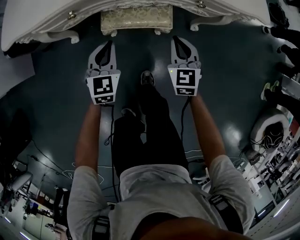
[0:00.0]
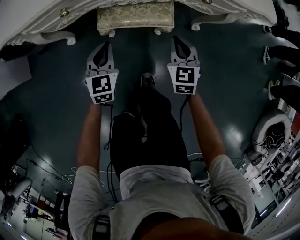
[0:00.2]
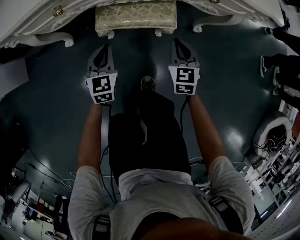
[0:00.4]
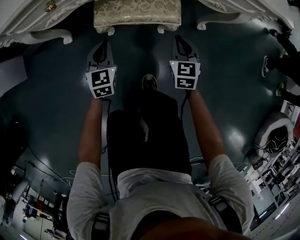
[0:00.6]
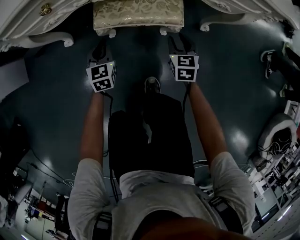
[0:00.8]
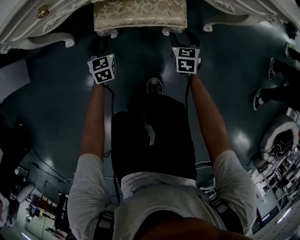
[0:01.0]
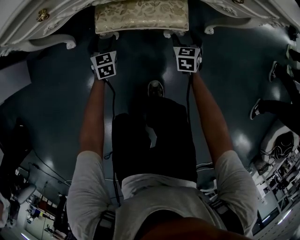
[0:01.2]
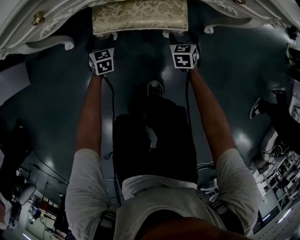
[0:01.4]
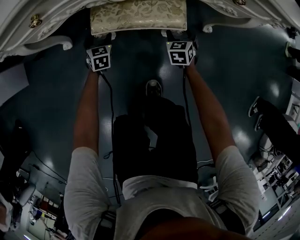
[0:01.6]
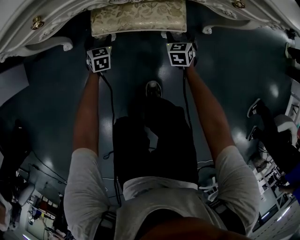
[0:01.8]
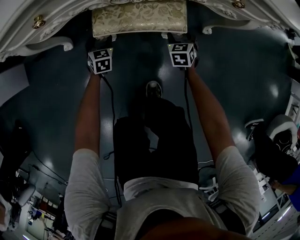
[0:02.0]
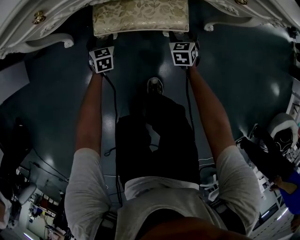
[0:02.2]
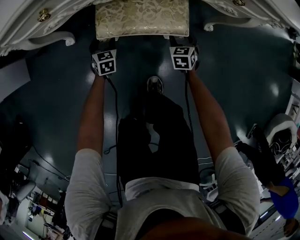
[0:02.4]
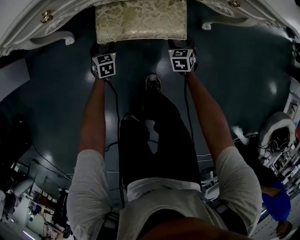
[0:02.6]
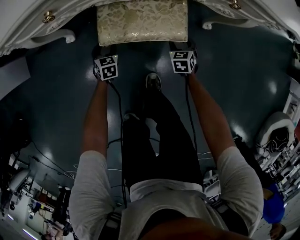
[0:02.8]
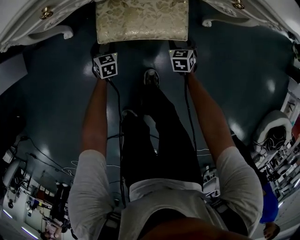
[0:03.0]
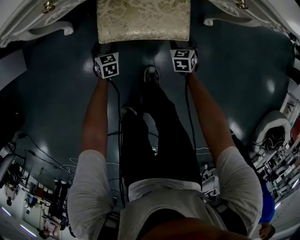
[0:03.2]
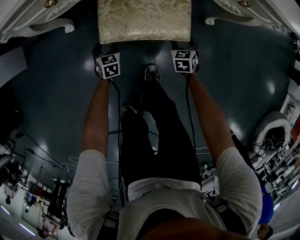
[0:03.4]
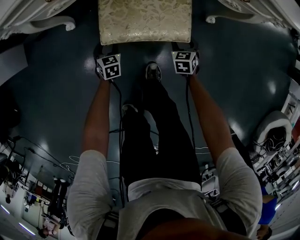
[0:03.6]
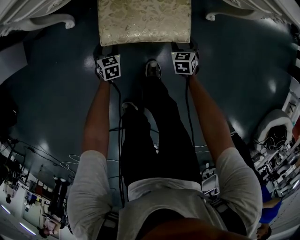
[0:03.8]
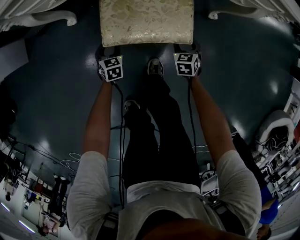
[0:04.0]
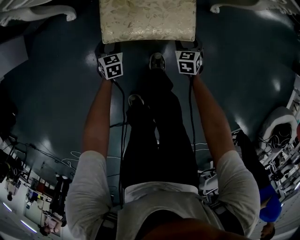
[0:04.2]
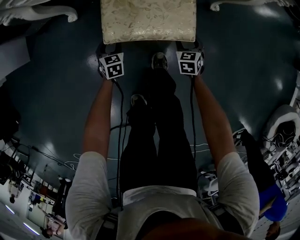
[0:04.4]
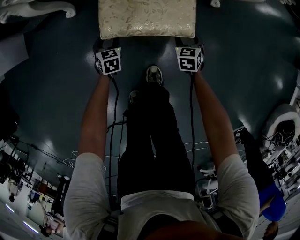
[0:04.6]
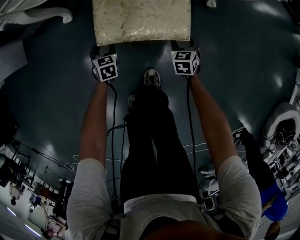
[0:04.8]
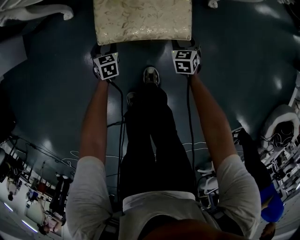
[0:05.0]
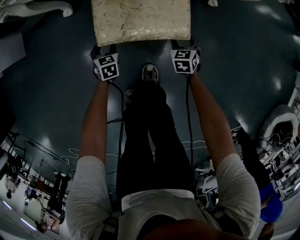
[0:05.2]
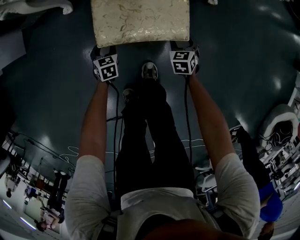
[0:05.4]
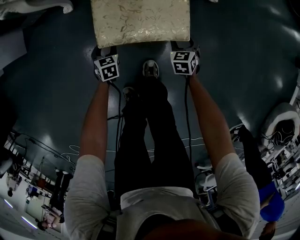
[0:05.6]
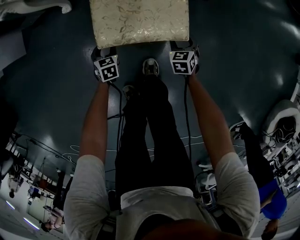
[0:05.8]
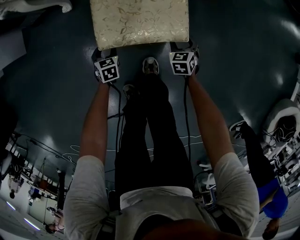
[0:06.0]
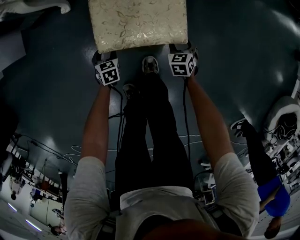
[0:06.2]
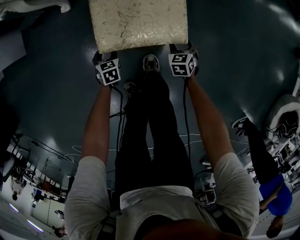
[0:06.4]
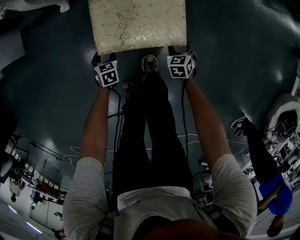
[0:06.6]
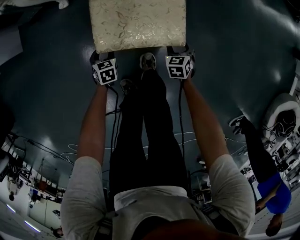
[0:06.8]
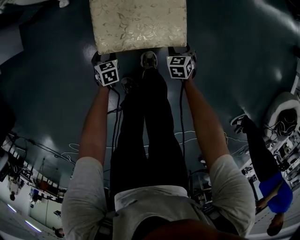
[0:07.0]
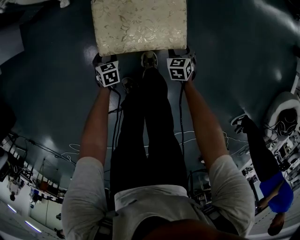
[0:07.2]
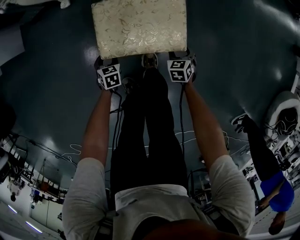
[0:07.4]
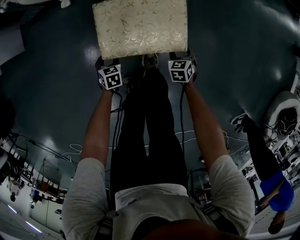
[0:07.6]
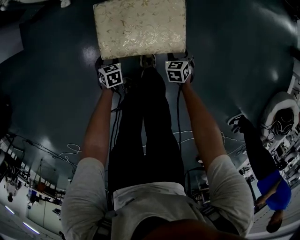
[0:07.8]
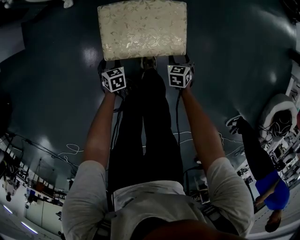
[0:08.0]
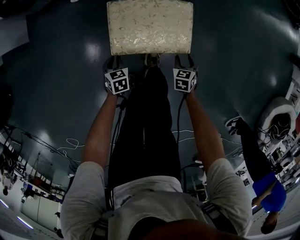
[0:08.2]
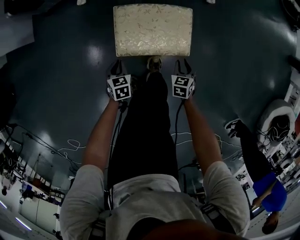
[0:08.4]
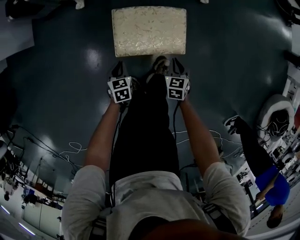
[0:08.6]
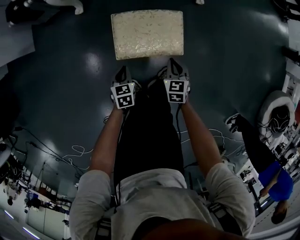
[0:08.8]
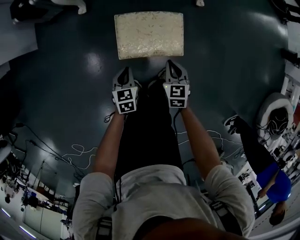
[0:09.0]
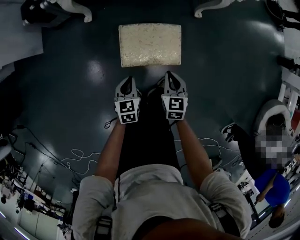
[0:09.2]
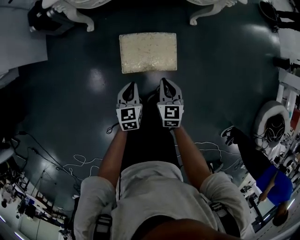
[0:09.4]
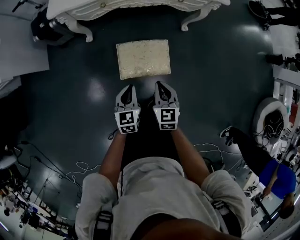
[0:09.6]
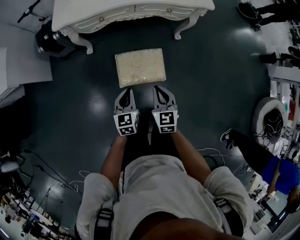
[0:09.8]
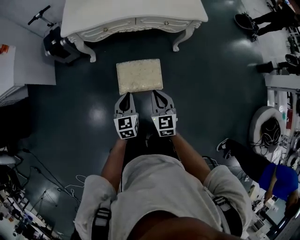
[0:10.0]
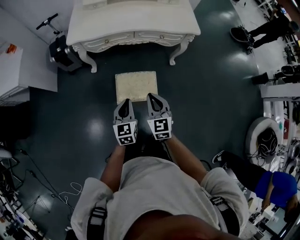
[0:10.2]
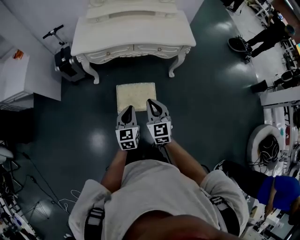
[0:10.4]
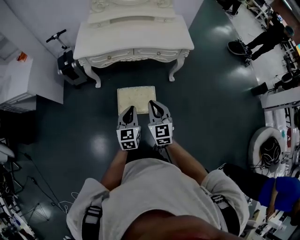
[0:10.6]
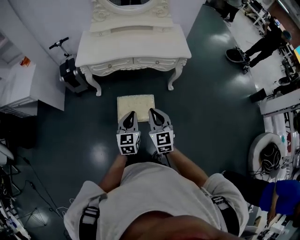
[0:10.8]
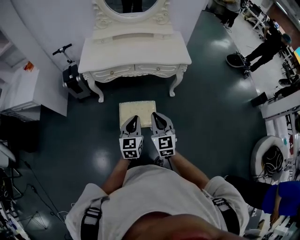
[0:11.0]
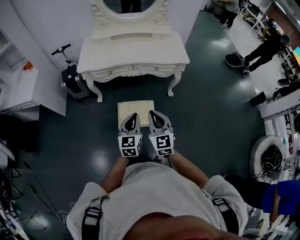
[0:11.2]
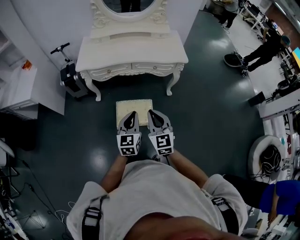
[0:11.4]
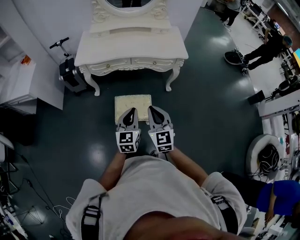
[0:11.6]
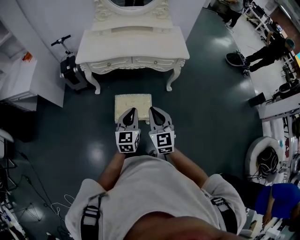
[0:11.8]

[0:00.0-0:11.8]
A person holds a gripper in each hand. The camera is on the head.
0:00.0 to 0:01.4: The two grippers go about 30 cm downward. The right gripper opens up, while the left gripper opens its fingers.
0:01.4 to 0:03.0: The grippers both shift backward by roughly 5 cm.
0:03.0 to 0:04.4: The two grippers go roughly 15 cm backward.
0:04.4 to 0:06.0: Both grippers move backward, roughly 5 cm.
0:06.0 to 0:07.4: The grippers both shift backward by roughly 10 cm.
0:07.4 to 0:08.8: The right gripper goes about 20 cm upward and to the left, and closes its fingers; the left gripper heads upward, covering roughly 20 cm, and closes up.
0:08.8 to 0:10.4: The two grippers go approximately 50 cm upward. The left gripper tips its fingers upward by approximately 30 degrees, while the right gripper rotates roughly 30 degrees.
0:10.4 to 0:11.8: The left gripper travels upward and to the right by roughly 10 cm. Meanwhile the right gripper travels upward by approximately 10 cm.

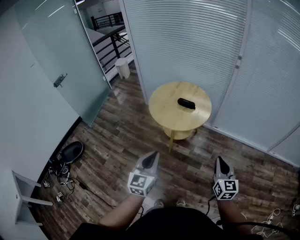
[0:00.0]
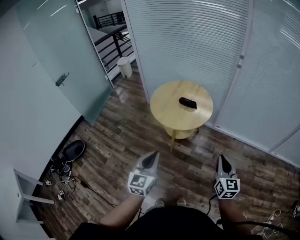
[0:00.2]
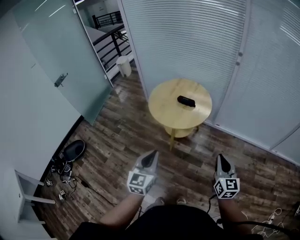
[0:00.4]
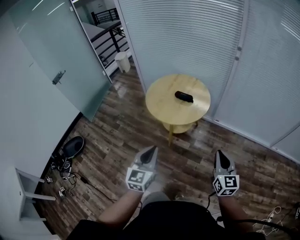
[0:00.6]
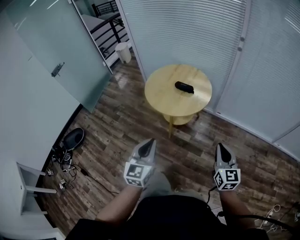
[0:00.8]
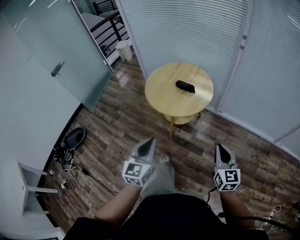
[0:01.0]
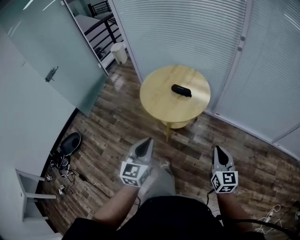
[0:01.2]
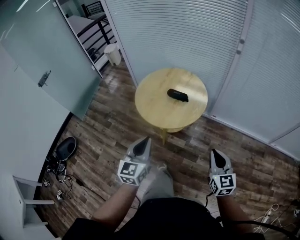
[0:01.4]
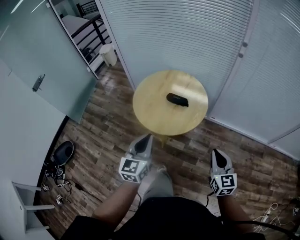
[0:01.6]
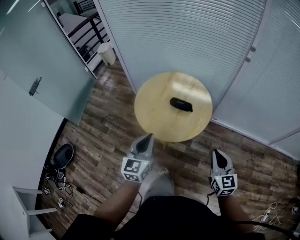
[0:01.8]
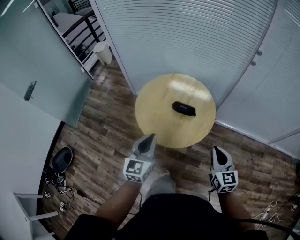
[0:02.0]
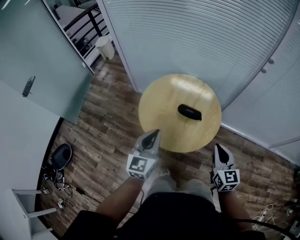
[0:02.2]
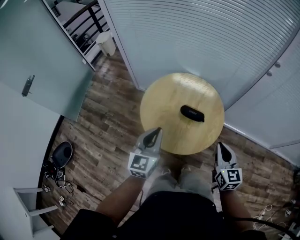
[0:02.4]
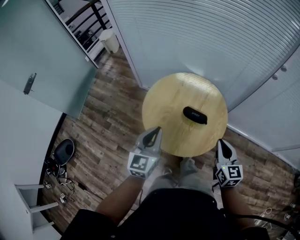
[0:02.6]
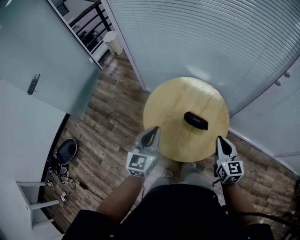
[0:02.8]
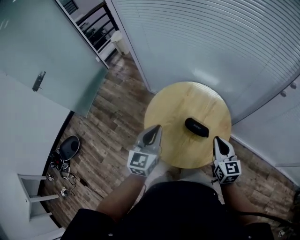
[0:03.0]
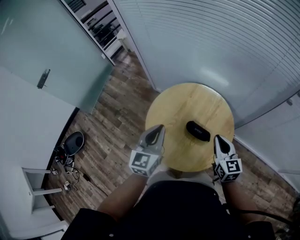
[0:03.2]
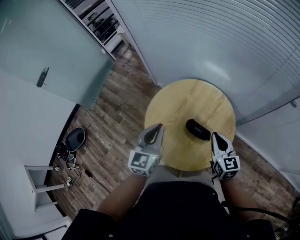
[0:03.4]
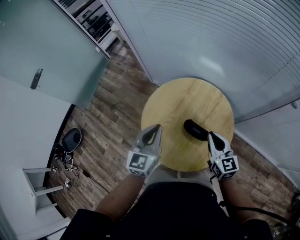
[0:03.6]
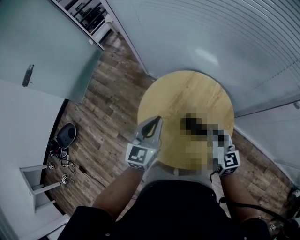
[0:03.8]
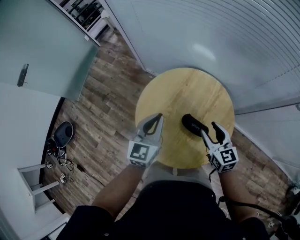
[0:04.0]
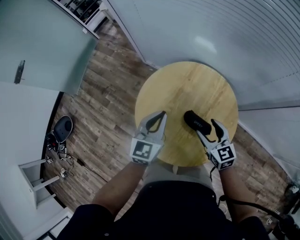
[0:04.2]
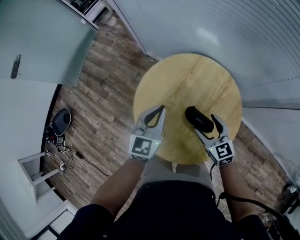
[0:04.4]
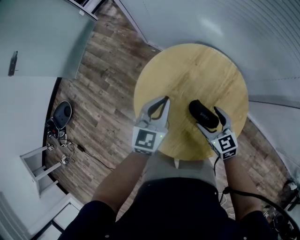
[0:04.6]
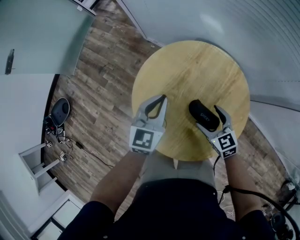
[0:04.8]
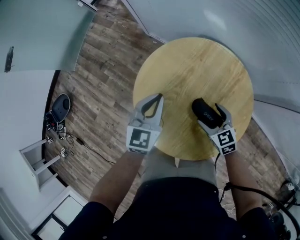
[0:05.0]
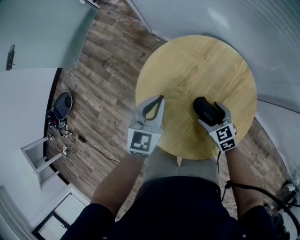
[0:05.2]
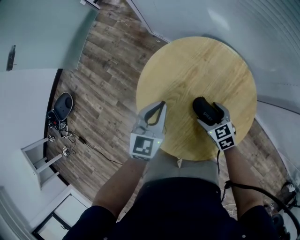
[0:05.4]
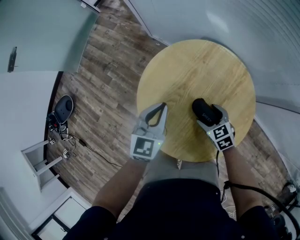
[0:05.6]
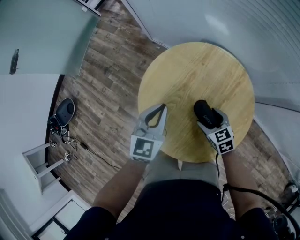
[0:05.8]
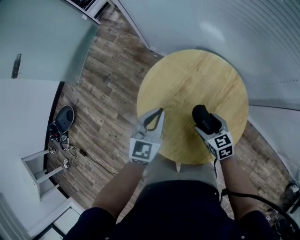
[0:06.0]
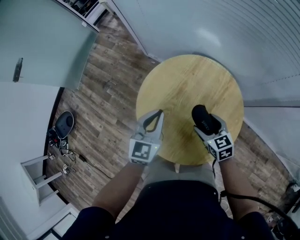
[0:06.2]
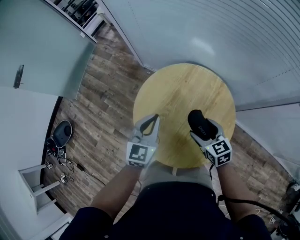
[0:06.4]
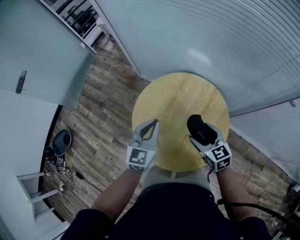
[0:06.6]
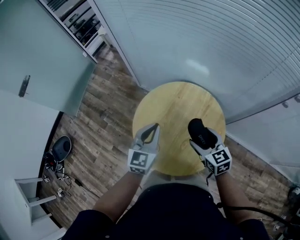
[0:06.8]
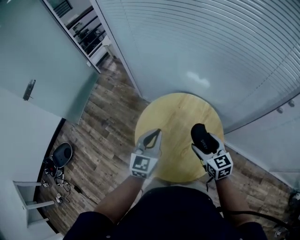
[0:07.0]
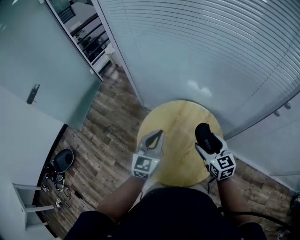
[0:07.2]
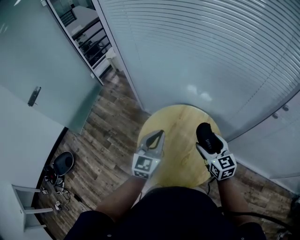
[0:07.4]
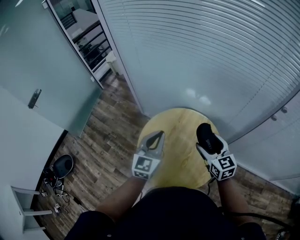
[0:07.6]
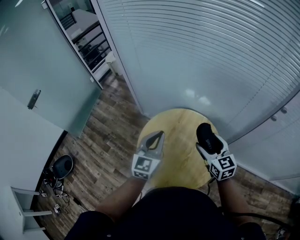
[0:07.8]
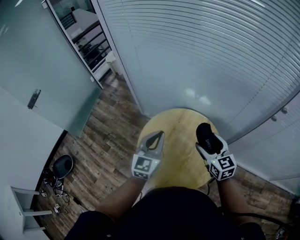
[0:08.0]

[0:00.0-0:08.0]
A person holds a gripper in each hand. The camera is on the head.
0:00.0 to 0:01.6: The grippers both shift forward by about 20 cm.
0:01.6 to 0:03.2: Both grippers move forward, approximately 35 cm.
0:03.2 to 0:04.8: The grippers both shift downward and forward by about 20 cm. The right gripper rotates roughly 30 degrees, and opens up.
0:04.8 to 0:06.4: Both grippers move upward, about 5 cm.
0:06.4 to 0:08.0: The two grippers go about 15 cm upward. The right gripper rotates about 20 degrees.

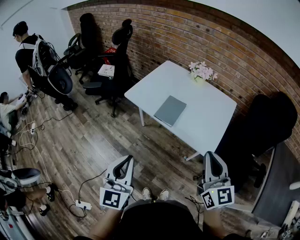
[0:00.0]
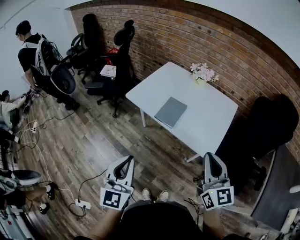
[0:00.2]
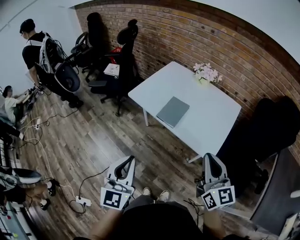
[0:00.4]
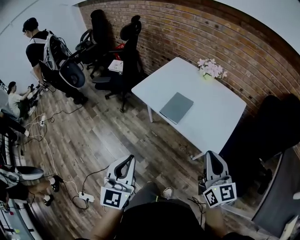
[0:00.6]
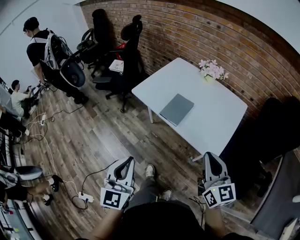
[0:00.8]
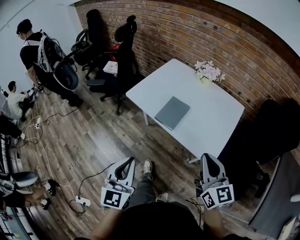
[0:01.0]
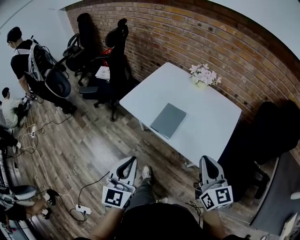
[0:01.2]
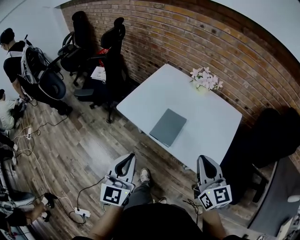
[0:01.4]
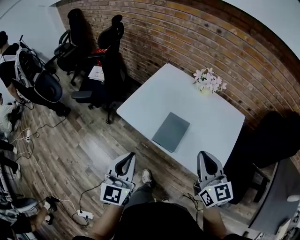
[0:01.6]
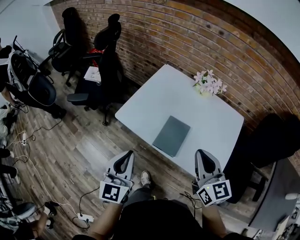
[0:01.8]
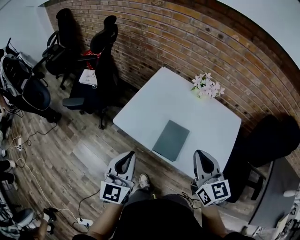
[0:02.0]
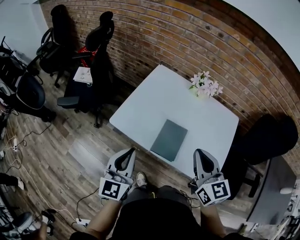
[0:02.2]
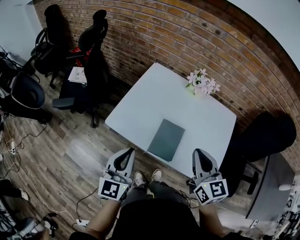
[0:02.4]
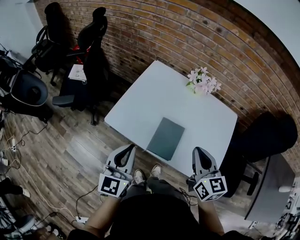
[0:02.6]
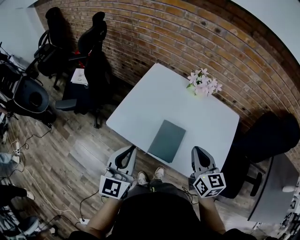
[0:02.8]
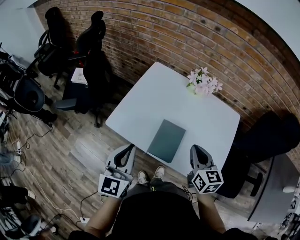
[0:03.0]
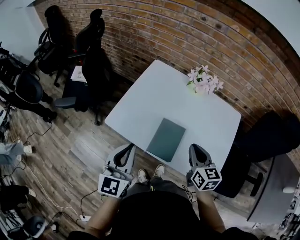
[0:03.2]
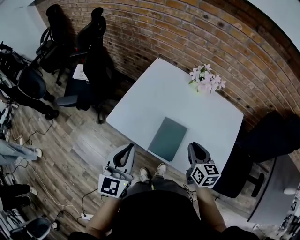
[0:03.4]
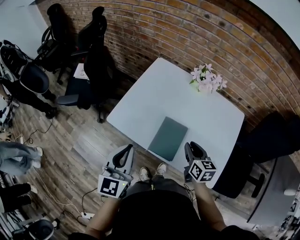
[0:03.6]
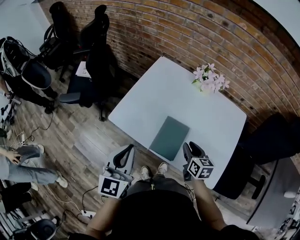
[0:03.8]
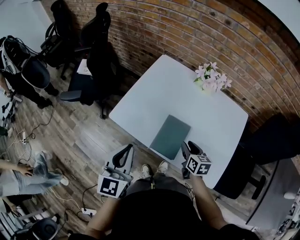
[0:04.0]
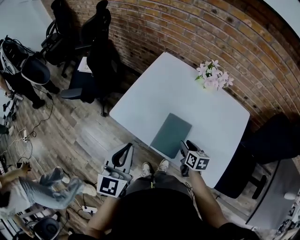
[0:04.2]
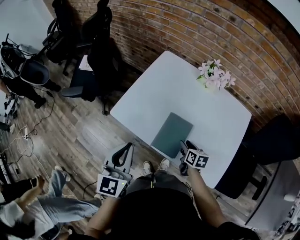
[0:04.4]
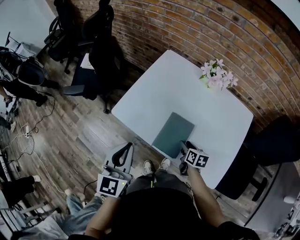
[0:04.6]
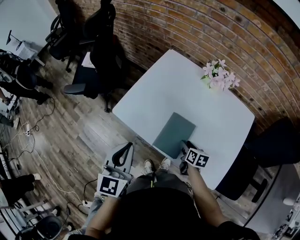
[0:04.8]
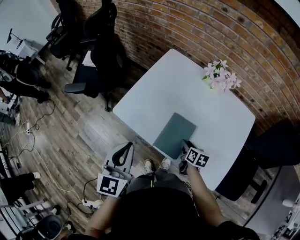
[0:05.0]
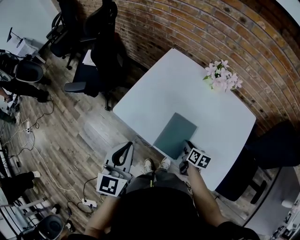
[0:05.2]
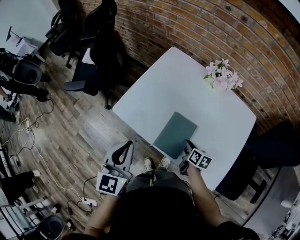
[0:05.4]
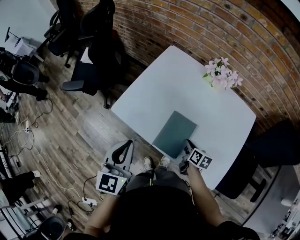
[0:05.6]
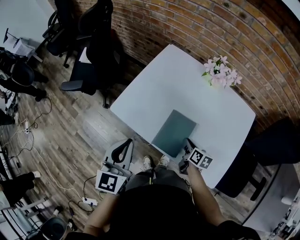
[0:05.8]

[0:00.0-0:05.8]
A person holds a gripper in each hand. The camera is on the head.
0:00.0 to 0:01.4: The two grippers go about 15 cm forward.
0:01.4 to 0:02.8: Both grippers move forward, some 15 cm.
0:02.8 to 0:04.4: The right gripper is displaced downward by roughly 25 cm, rotates some 40 degrees, and opens up.
0:04.4 to 0:05.8: The right gripper closes up.
